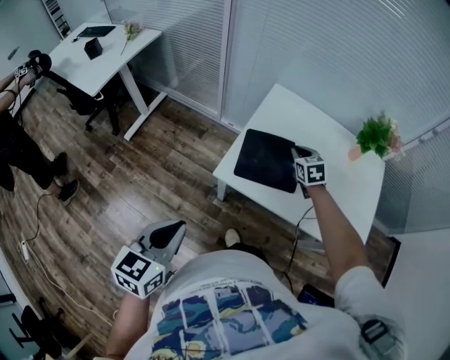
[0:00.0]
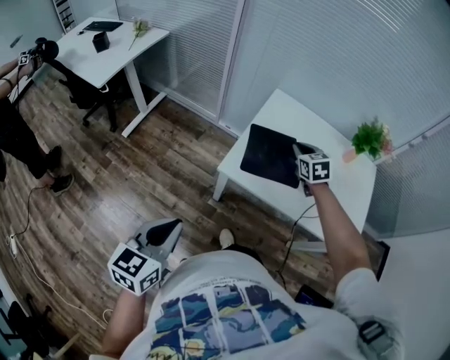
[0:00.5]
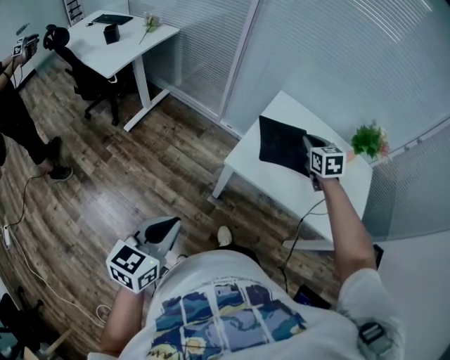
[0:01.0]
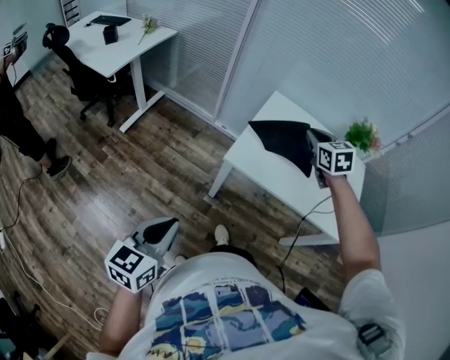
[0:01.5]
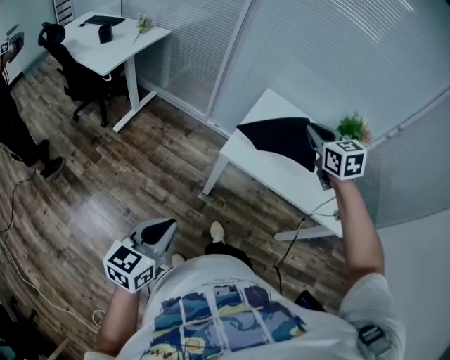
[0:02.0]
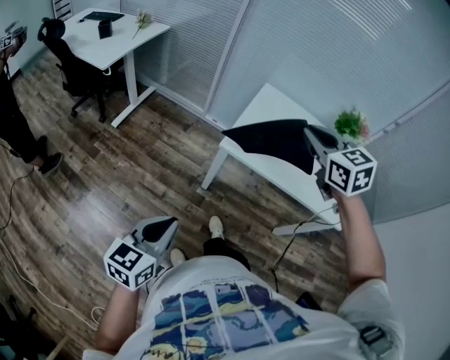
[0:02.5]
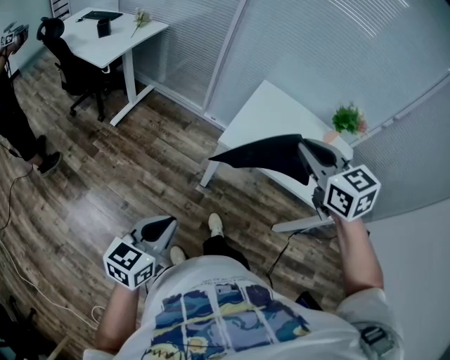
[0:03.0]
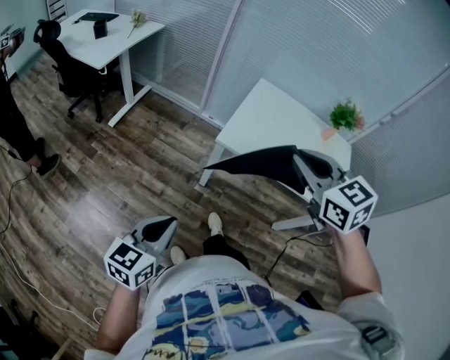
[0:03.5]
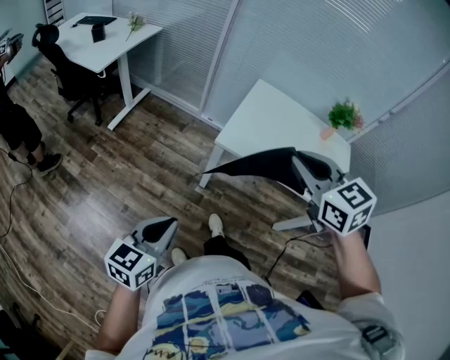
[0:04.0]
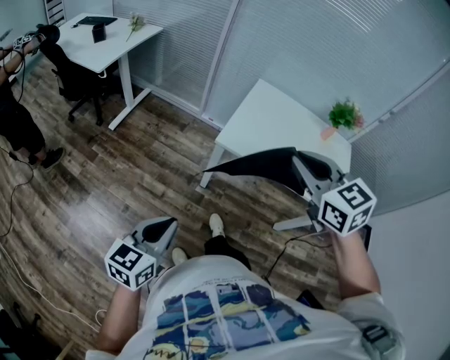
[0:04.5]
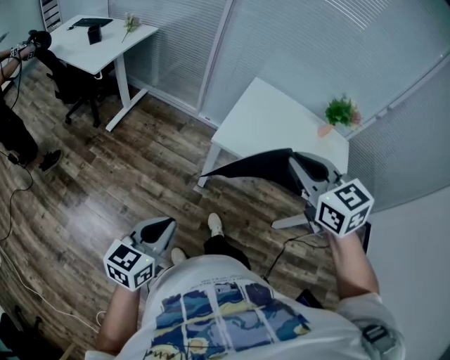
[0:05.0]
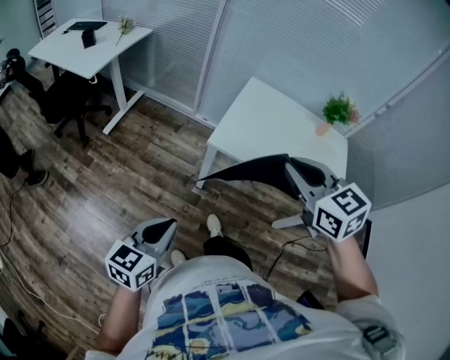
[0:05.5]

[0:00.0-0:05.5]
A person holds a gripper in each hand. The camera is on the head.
0:00.0 to 0:02.0: The left gripper travels backward and to the left by some 20 cm. The right gripper moves upward and backward, about 35 cm.
0:02.0 to 0:03.5: The right gripper travels backward by roughly 20 cm.
0:03.5 to 0:05.5: The grippers stay close to where they were, moving slightly.

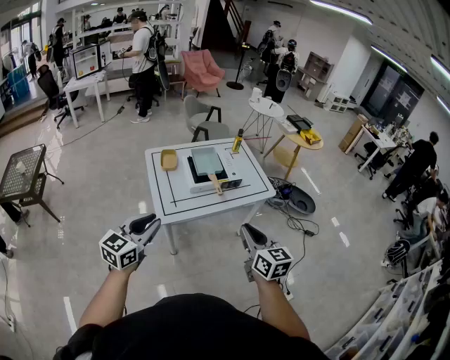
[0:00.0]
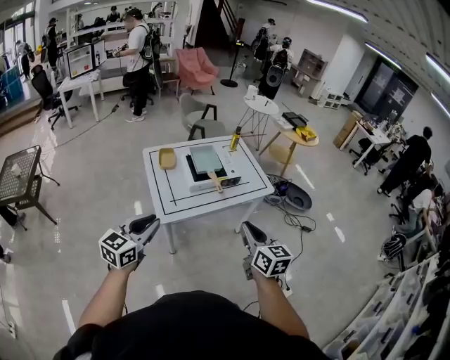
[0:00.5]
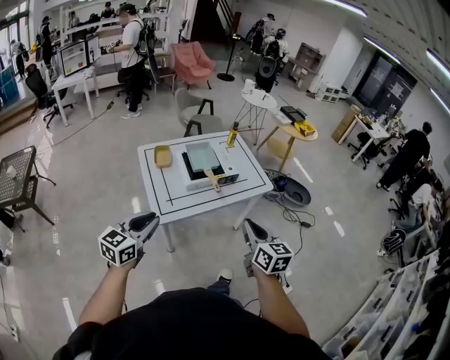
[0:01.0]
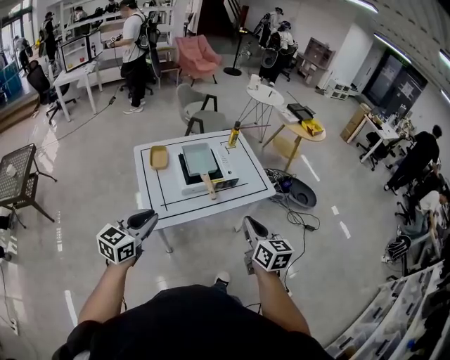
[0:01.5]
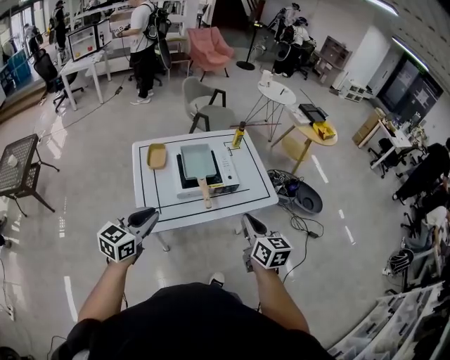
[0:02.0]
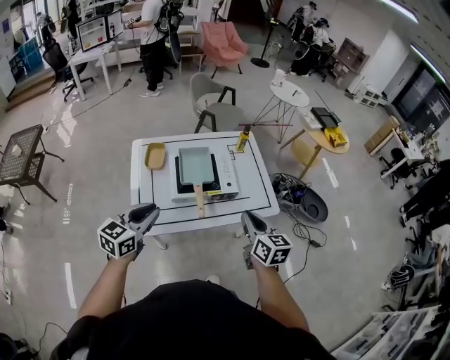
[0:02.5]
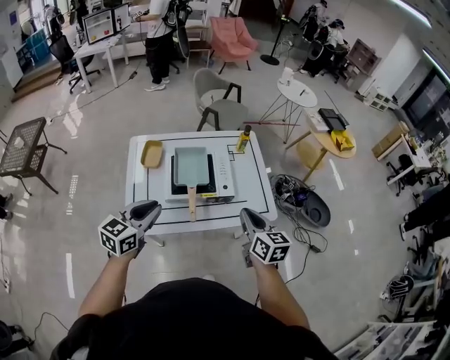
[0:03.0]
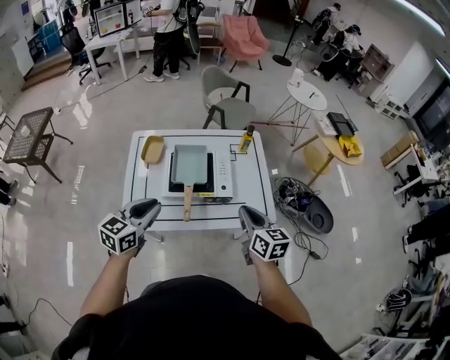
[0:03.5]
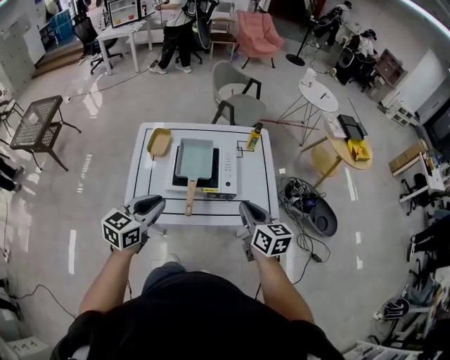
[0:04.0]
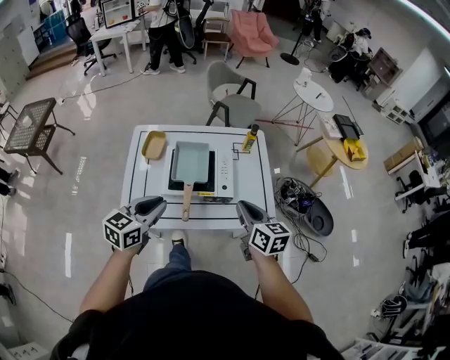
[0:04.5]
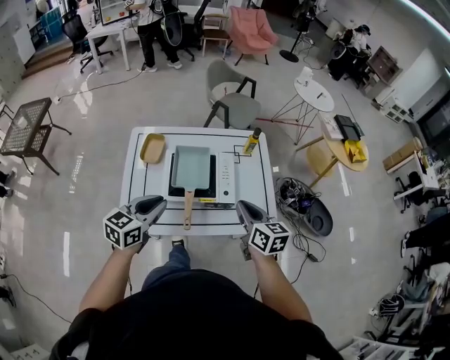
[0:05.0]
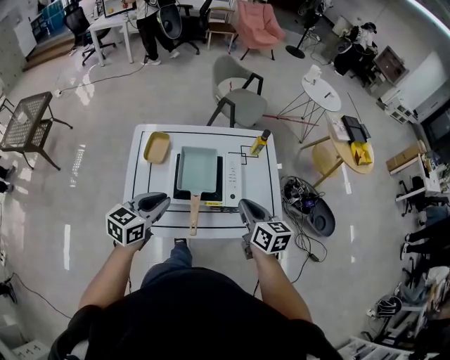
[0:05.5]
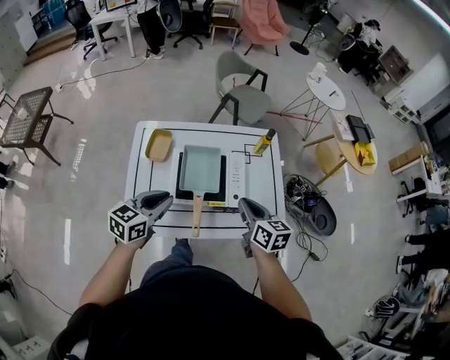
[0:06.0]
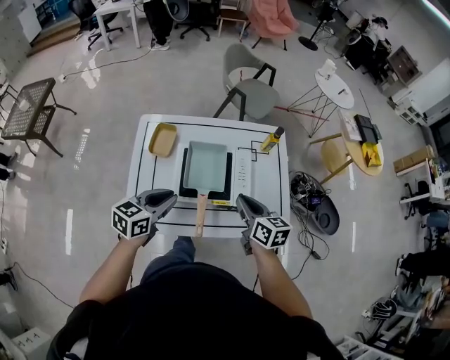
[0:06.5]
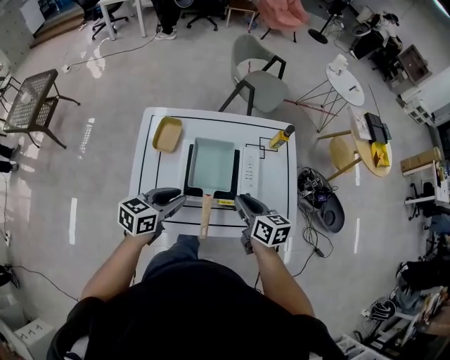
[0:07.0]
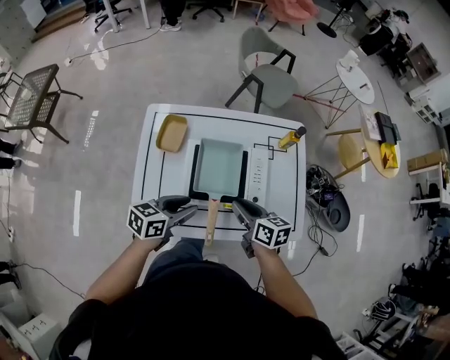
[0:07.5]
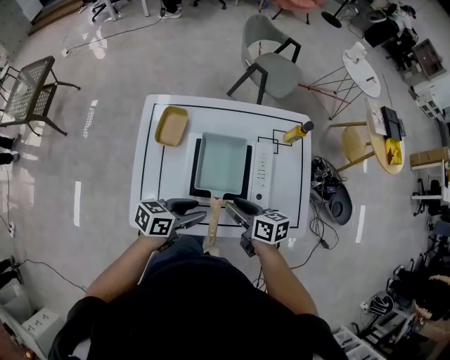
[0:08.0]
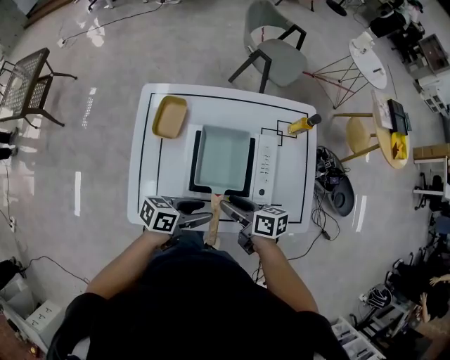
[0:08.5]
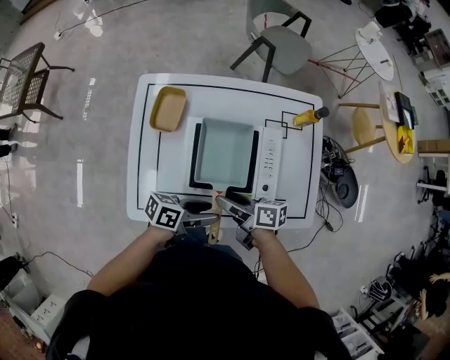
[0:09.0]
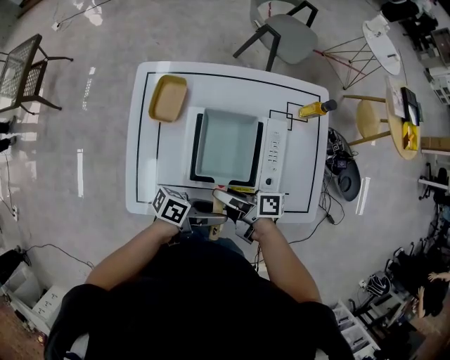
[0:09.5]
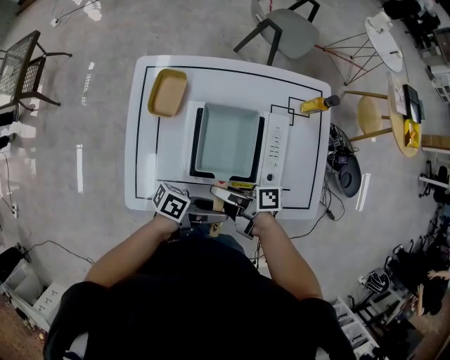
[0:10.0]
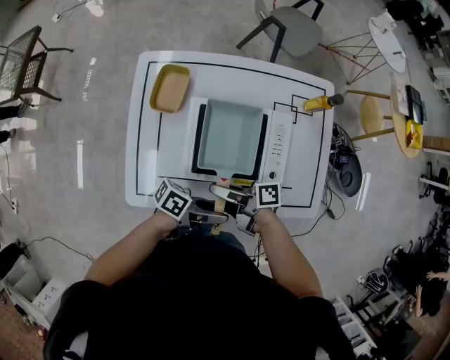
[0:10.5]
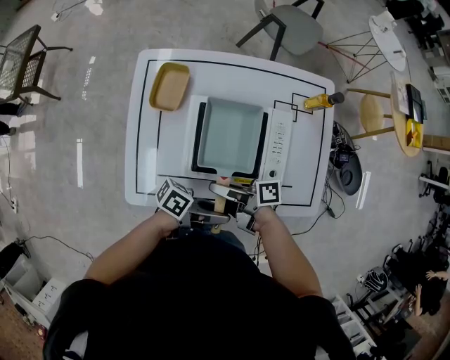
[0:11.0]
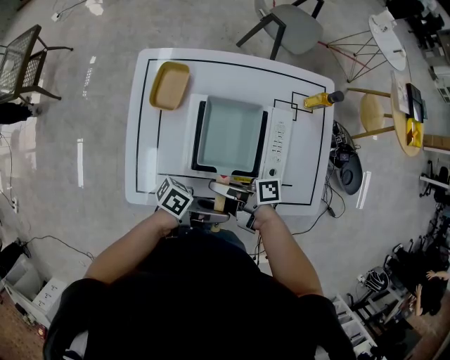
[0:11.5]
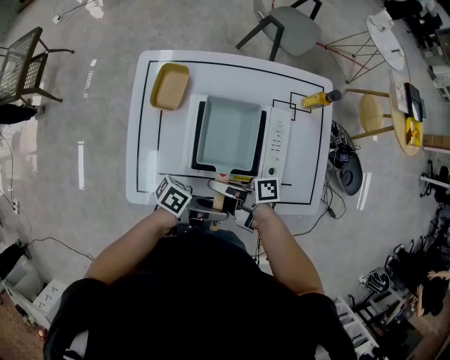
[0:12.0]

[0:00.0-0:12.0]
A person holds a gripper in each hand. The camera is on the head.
0:00.0 to 0:02.0: Both grippers travel together forward, some 20 cm.
0:02.0 to 0:04.0: The right gripper goes roughly 15 cm forward and to the right; the left gripper goes approximately 15 cm to the right and forward.
0:04.0 to 0:06.0: The right gripper heads forward and to the left, covering some 10 cm. The left gripper goes about 10 cm forward.
0:06.0 to 0:08.0: The left gripper goes approximately 10 cm downward, changes its angle by about 30 degrees, and opens. Meanwhile the right gripper heads downward and to the left, covering about 15 cm, rotates roughly 30 degrees, and opens its fingers.
0:08.0 to 0:10.0: The left gripper moves some 10 cm, and turns by roughly 40 degrees; the right gripper moves roughly 10 cm, and rotates roughly 40 degrees.
0:10.0 to 0:12.0: The left gripper closes up.

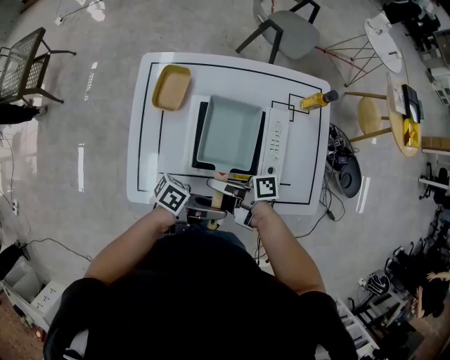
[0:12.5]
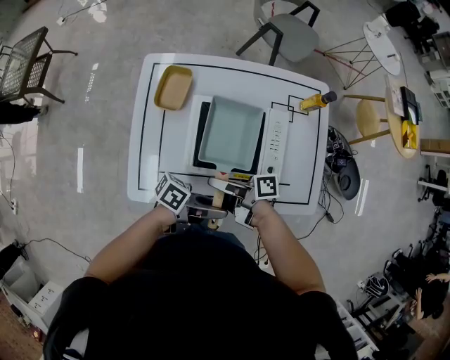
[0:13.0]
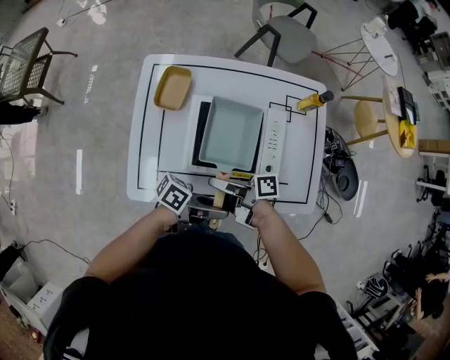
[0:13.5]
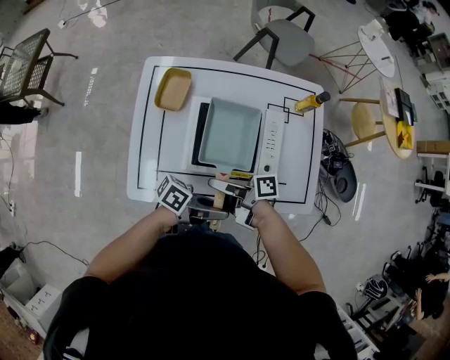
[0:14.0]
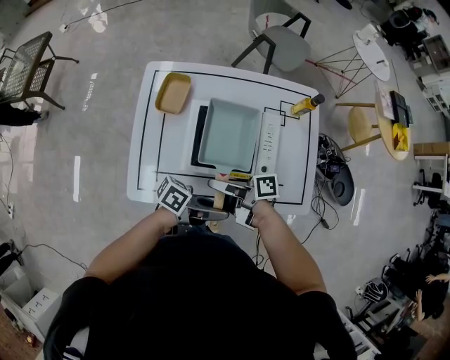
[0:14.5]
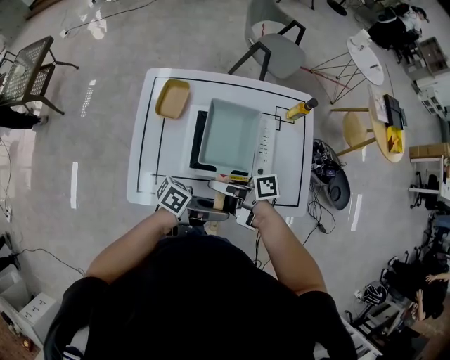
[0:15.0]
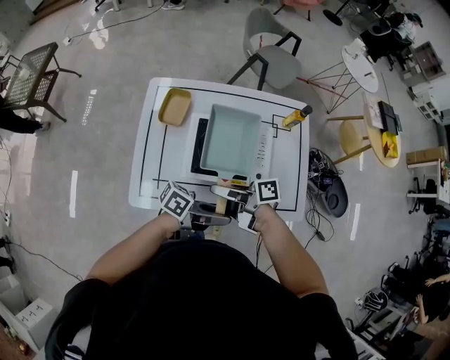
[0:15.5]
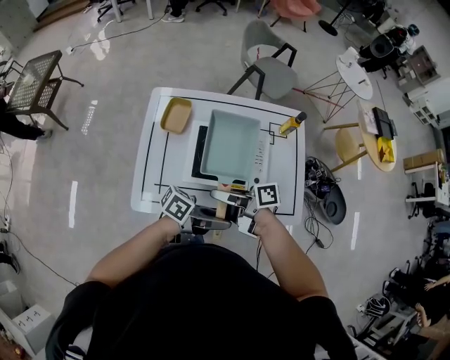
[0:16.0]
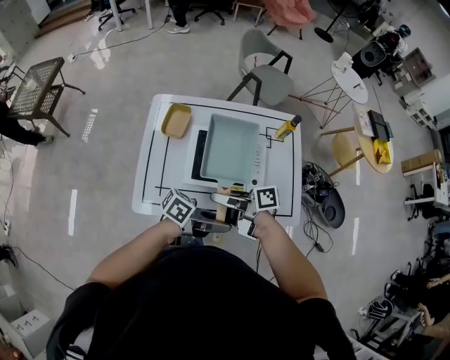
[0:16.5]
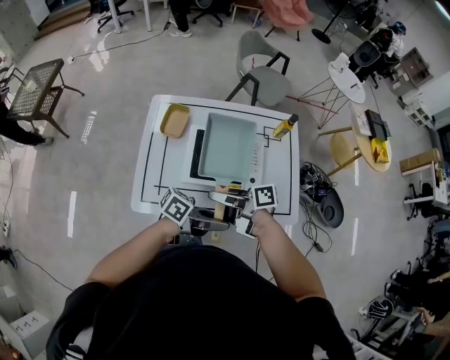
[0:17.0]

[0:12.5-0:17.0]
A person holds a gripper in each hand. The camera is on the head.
0:12.5 to 0:14.5: The grippers move only a little.
0:14.5 to 0:17.0: The two grippers go approximately 5 cm upward.

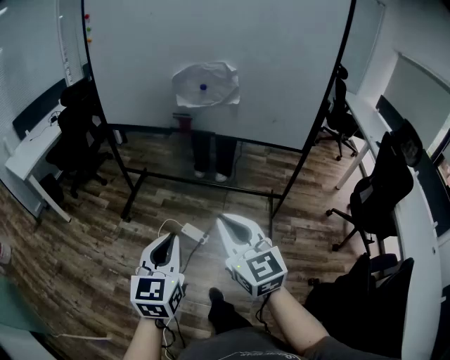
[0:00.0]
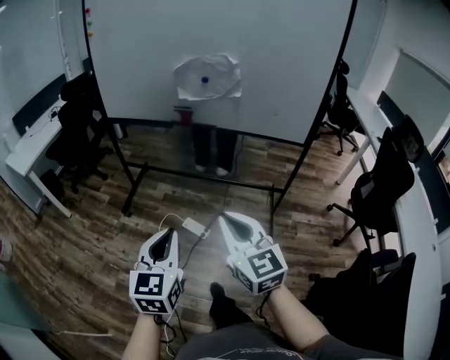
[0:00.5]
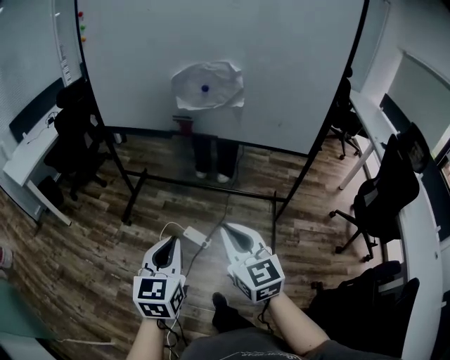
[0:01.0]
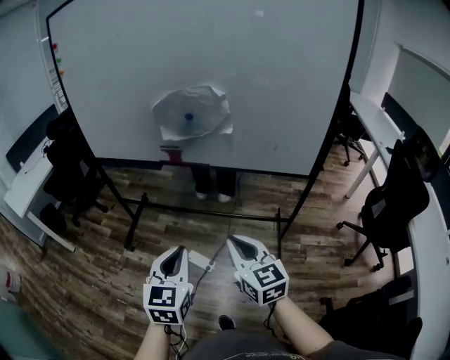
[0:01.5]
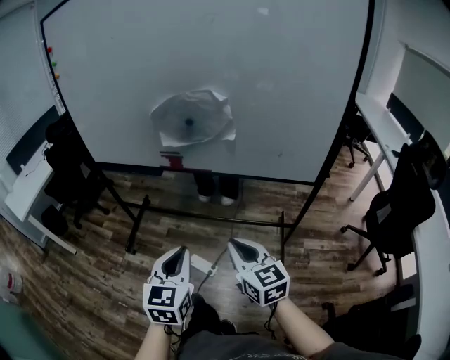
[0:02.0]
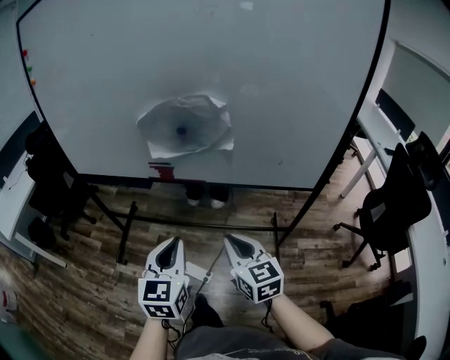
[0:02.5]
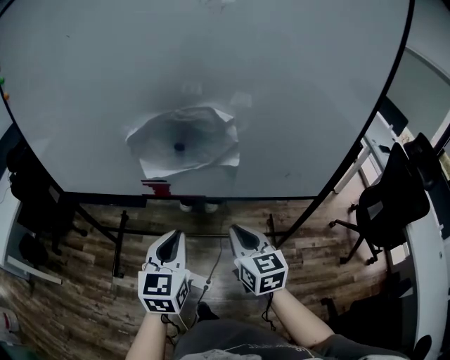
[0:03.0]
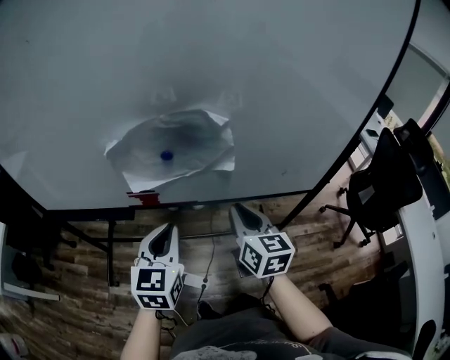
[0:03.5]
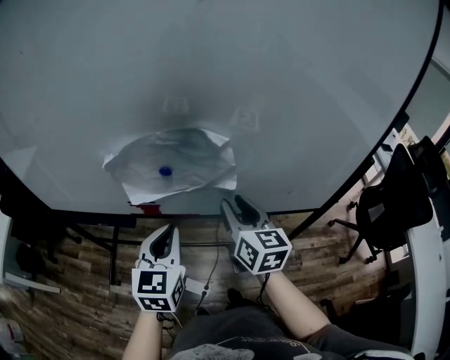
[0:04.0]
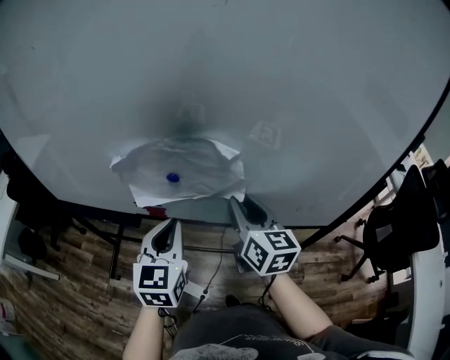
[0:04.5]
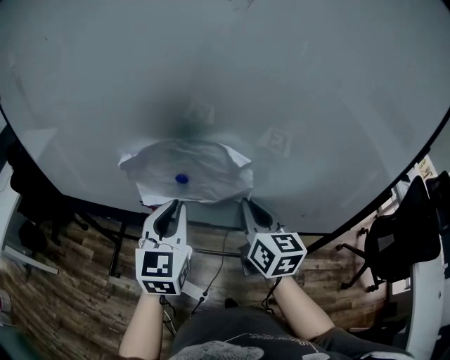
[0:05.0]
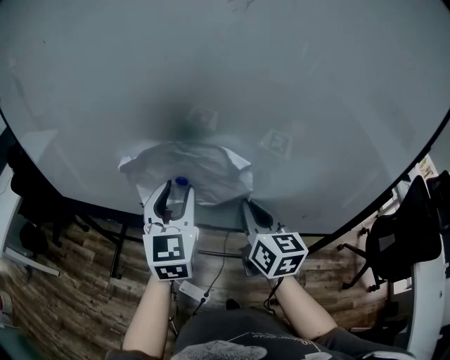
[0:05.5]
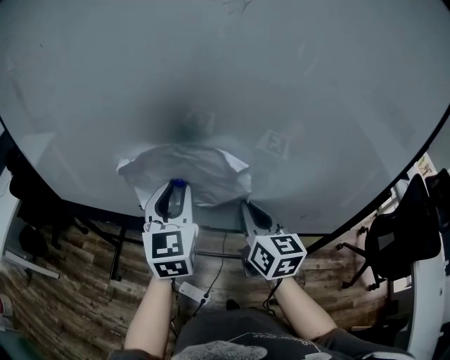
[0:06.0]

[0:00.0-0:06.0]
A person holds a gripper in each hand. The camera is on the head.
0:00.0 to 0:02.0: The right gripper shifts some 20 cm forward and to the right, while the left gripper heads forward, covering approximately 20 cm.
0:02.0 to 0:04.0: The two grippers go about 30 cm forward. The right gripper swivels roughly 20 degrees, and opens.
0:04.0 to 0:06.0: The right gripper closes its fingers, while the left gripper travels forward and upward by about 15 cm, and opens its fingers.
